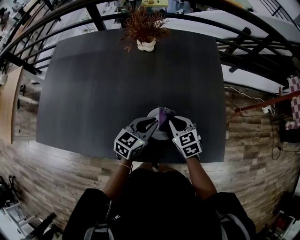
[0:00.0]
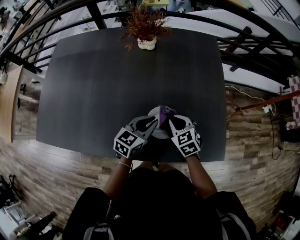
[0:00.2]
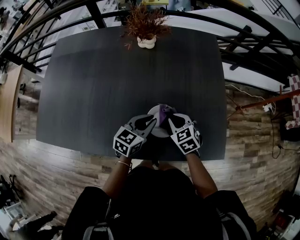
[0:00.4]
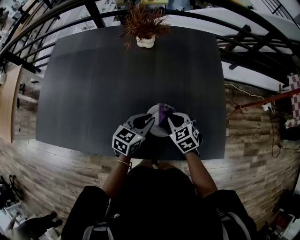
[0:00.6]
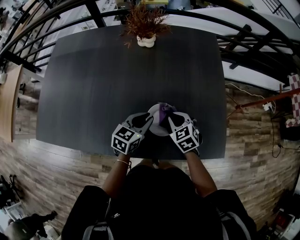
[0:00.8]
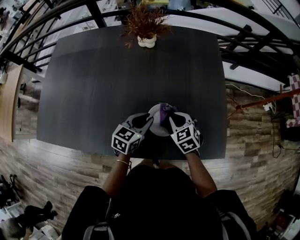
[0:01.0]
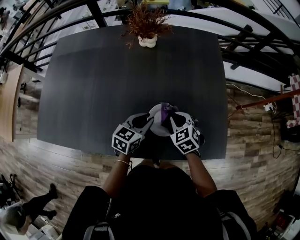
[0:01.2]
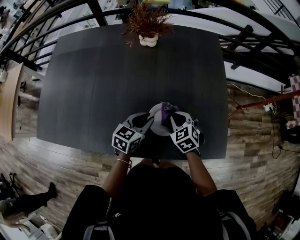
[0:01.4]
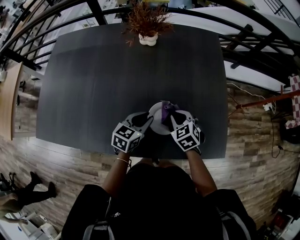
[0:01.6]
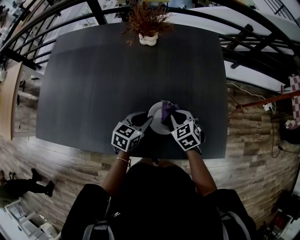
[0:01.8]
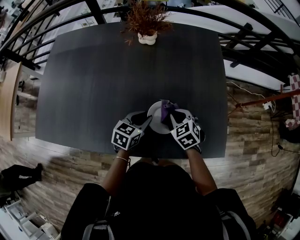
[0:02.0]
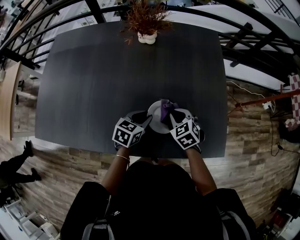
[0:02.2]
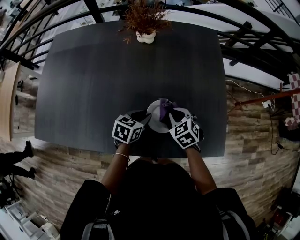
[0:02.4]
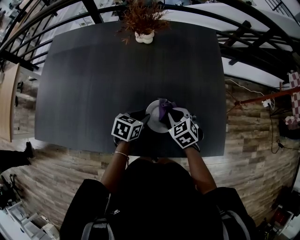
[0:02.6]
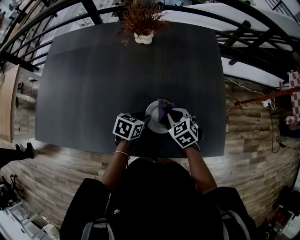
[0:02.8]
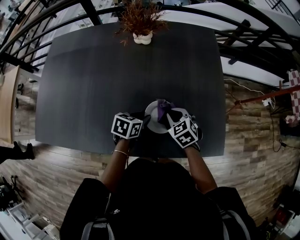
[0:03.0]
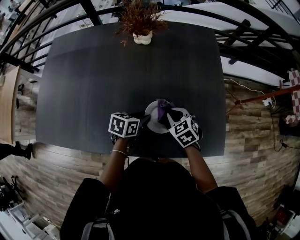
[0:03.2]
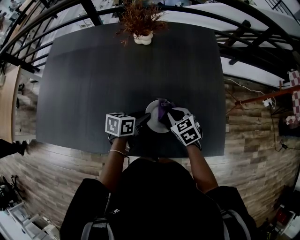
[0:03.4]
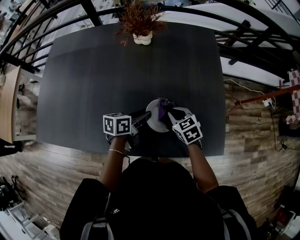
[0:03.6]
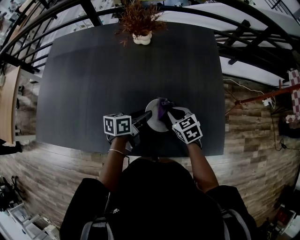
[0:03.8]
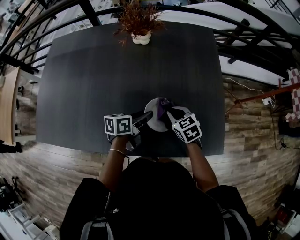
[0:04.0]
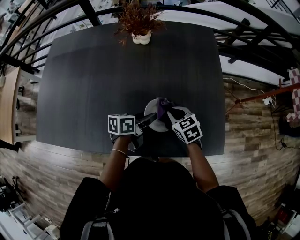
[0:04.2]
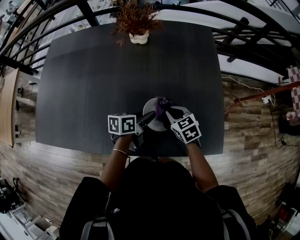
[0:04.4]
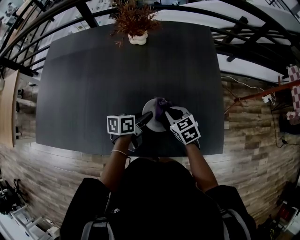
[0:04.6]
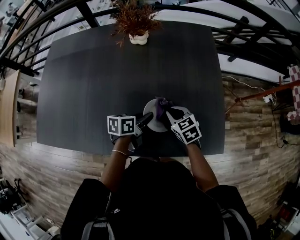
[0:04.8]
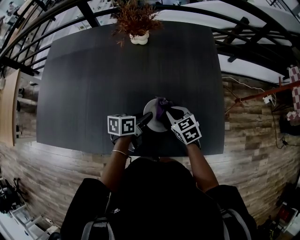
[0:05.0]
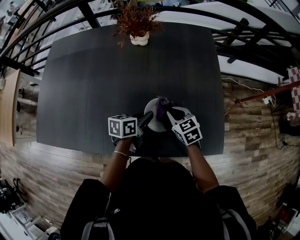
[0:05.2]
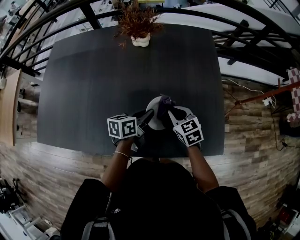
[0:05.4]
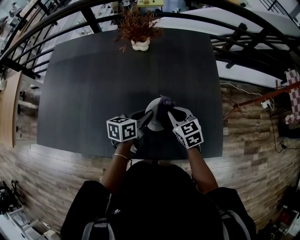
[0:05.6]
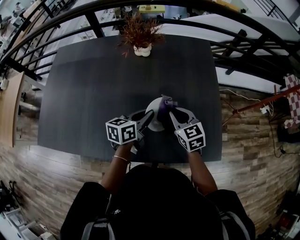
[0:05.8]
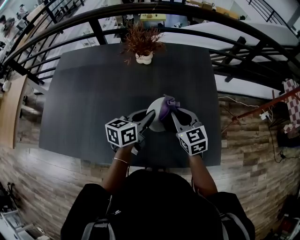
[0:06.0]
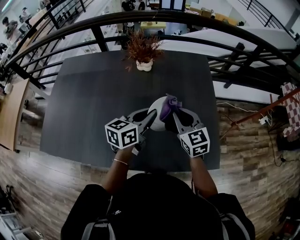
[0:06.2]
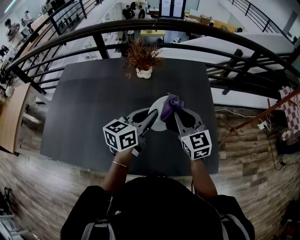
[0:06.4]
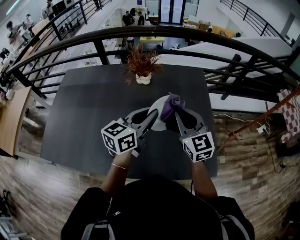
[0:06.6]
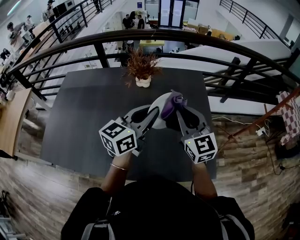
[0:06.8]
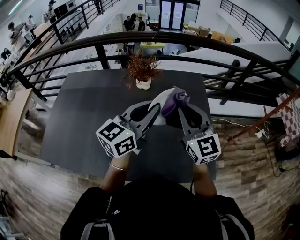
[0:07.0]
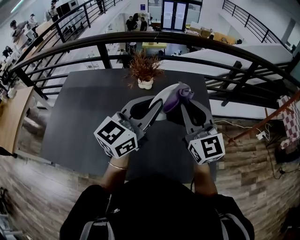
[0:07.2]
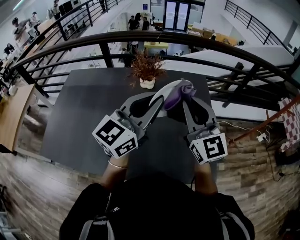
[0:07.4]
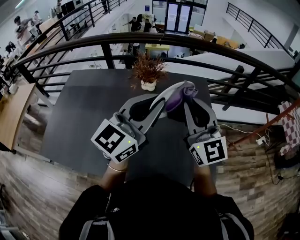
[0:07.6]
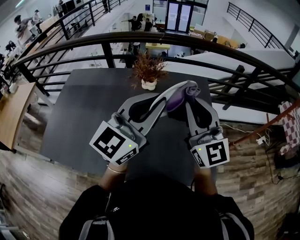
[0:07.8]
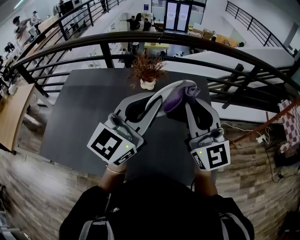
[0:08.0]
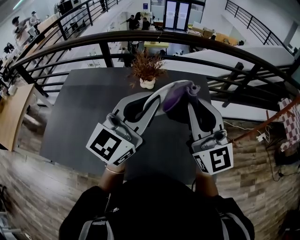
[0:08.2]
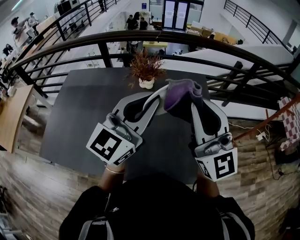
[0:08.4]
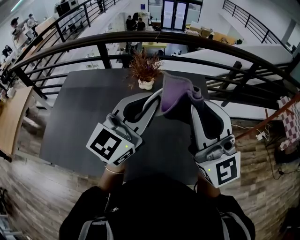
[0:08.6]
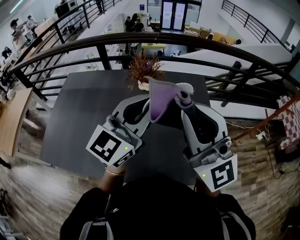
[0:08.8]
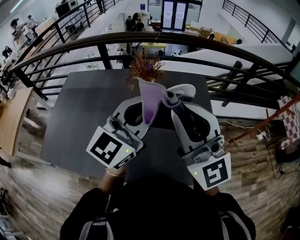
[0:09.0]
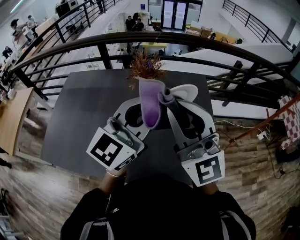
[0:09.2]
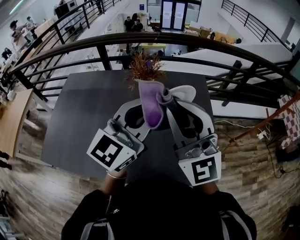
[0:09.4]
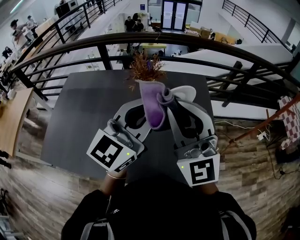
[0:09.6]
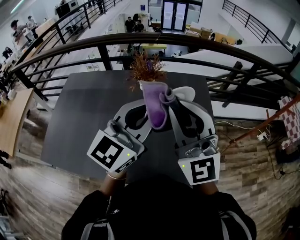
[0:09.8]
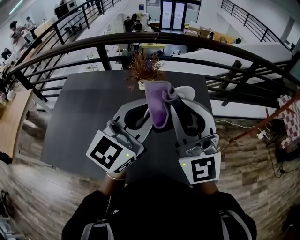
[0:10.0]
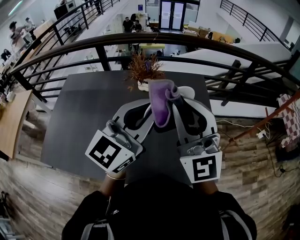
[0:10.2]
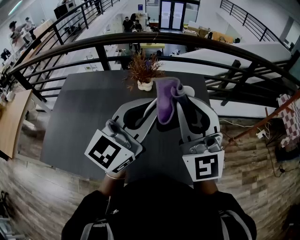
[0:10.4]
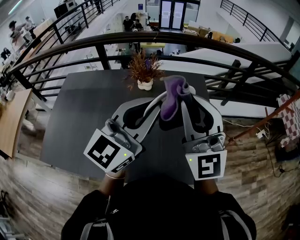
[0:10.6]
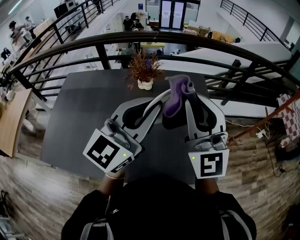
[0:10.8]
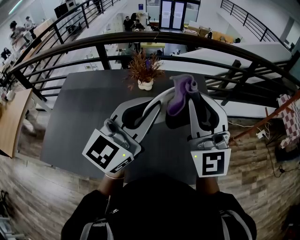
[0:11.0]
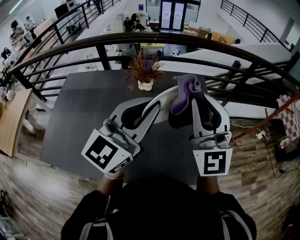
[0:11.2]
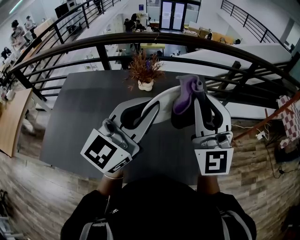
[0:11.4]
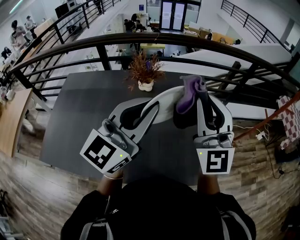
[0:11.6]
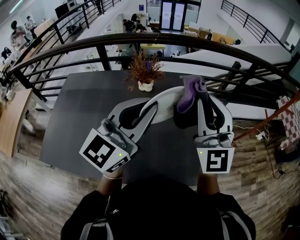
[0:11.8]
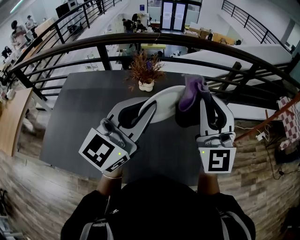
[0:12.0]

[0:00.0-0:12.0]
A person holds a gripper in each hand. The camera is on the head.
0:00.0 to 0:01.6: The grippers move only a little.
0:01.6 to 0:03.0: The left gripper rotates some 20 degrees.
0:03.0 to 0:04.4: The left gripper rotates roughly 30 degrees.
0:04.4 to 0:06.0: The grippers both shift upward by about 15 cm. The right gripper turns by some 20 degrees; the left gripper turns by approximately 20 degrees, and closes up.
0:06.0 to 0:07.6: Both grippers travel together upward, roughly 25 cm. The right gripper points its fingers some 40 degrees further upward. The left gripper turns by approximately 50 degrees.
0:07.6 to 0:09.0: The right gripper heads upward and backward, covering about 10 cm, and swivels about 20 degrees.
0:09.0 to 0:10.4: The grippers make only small movements.
0:10.4 to 0:12.0: The right gripper heads to the right, covering approximately 5 cm.

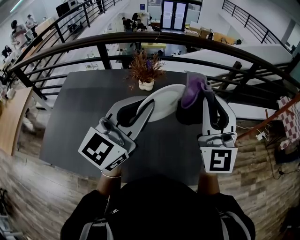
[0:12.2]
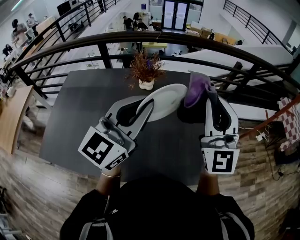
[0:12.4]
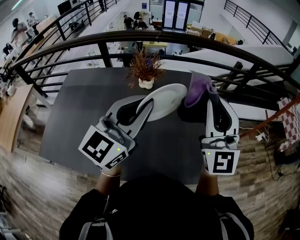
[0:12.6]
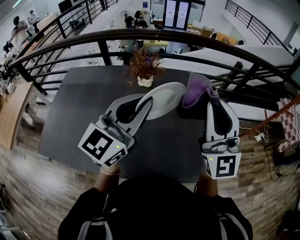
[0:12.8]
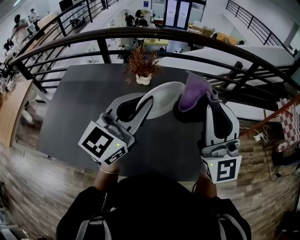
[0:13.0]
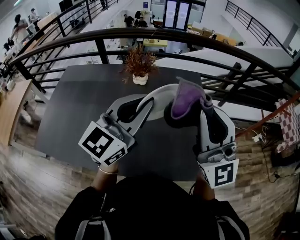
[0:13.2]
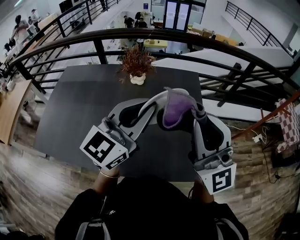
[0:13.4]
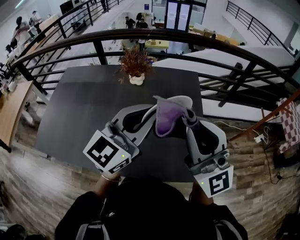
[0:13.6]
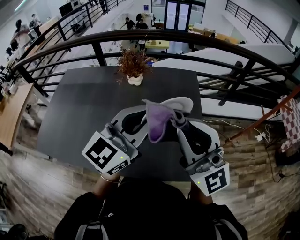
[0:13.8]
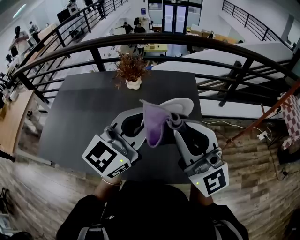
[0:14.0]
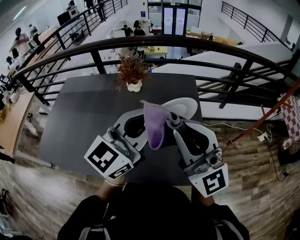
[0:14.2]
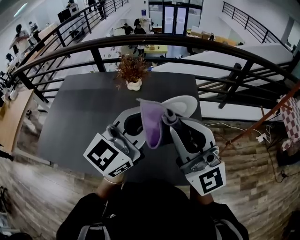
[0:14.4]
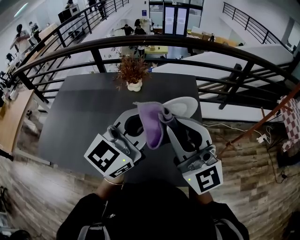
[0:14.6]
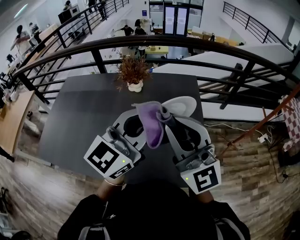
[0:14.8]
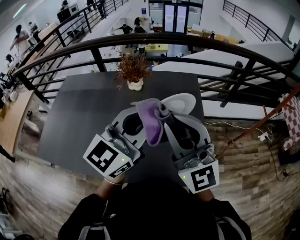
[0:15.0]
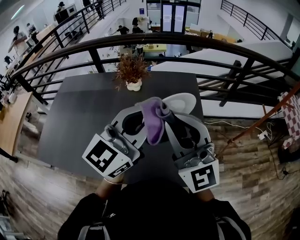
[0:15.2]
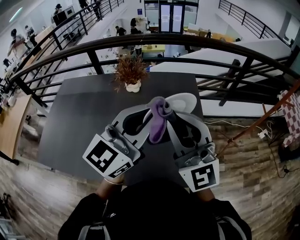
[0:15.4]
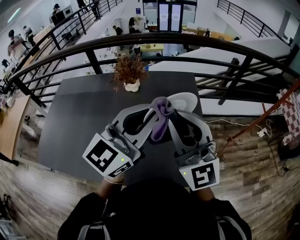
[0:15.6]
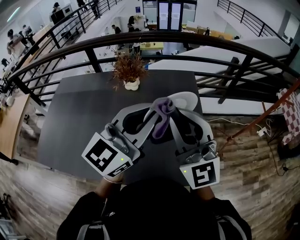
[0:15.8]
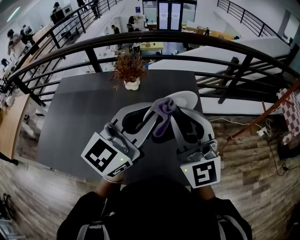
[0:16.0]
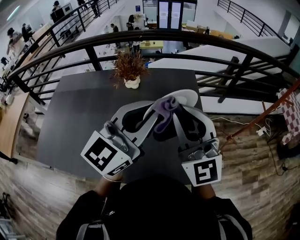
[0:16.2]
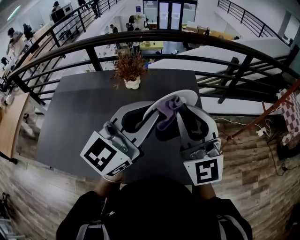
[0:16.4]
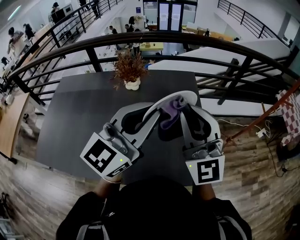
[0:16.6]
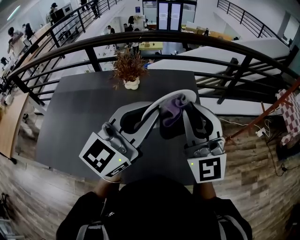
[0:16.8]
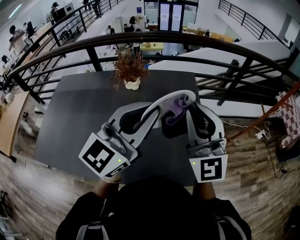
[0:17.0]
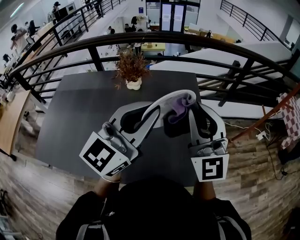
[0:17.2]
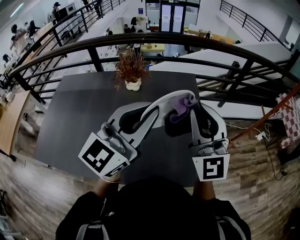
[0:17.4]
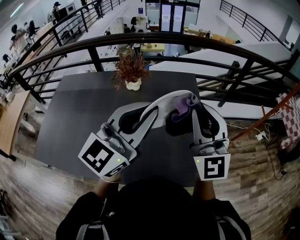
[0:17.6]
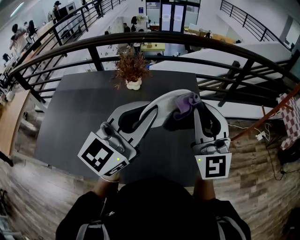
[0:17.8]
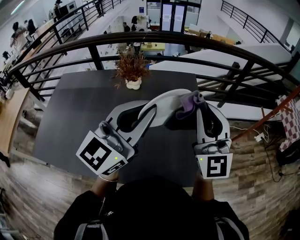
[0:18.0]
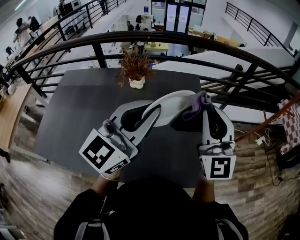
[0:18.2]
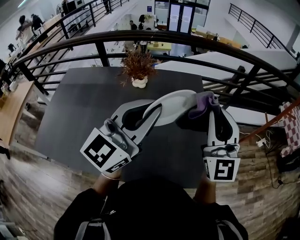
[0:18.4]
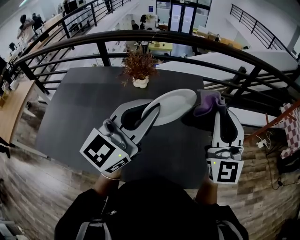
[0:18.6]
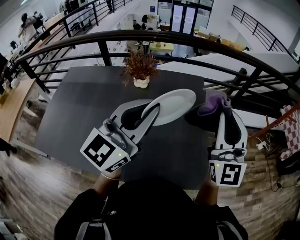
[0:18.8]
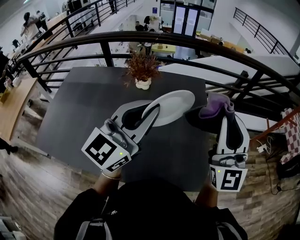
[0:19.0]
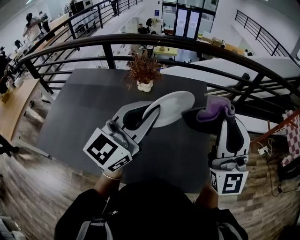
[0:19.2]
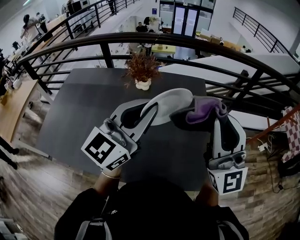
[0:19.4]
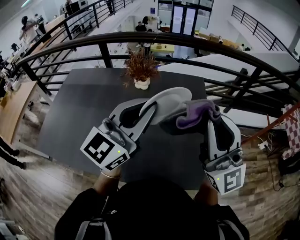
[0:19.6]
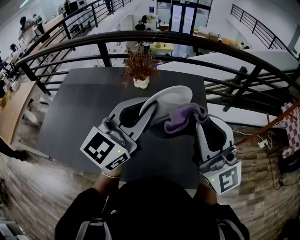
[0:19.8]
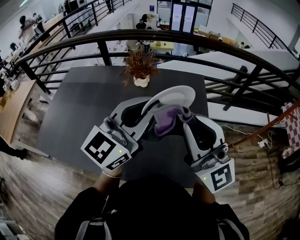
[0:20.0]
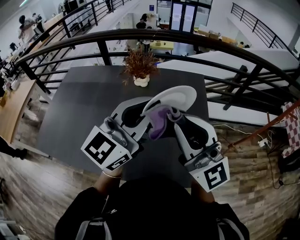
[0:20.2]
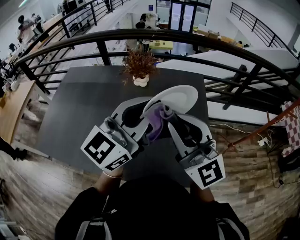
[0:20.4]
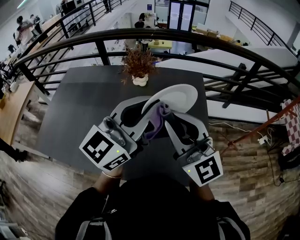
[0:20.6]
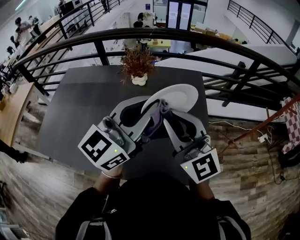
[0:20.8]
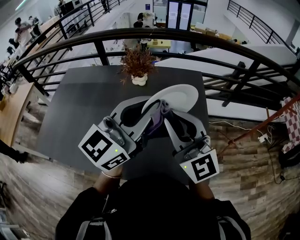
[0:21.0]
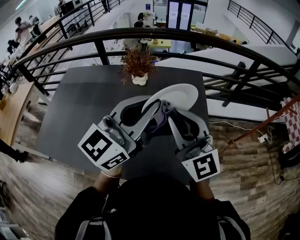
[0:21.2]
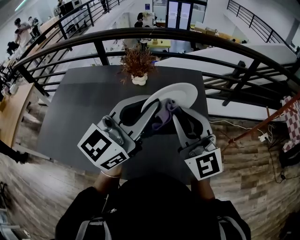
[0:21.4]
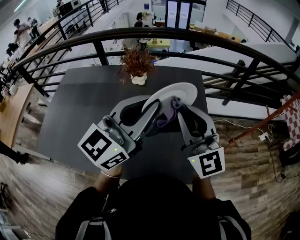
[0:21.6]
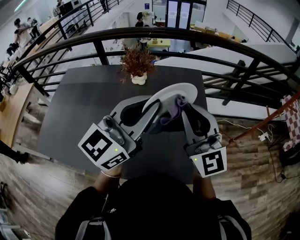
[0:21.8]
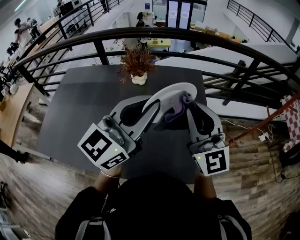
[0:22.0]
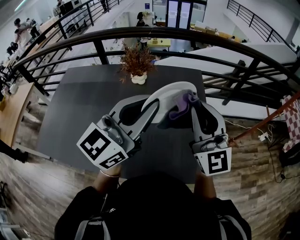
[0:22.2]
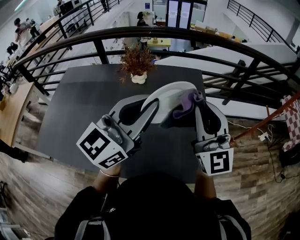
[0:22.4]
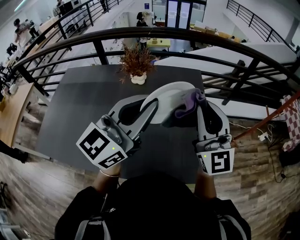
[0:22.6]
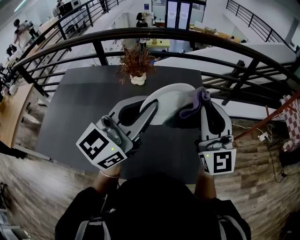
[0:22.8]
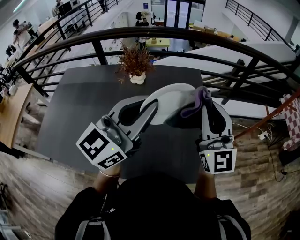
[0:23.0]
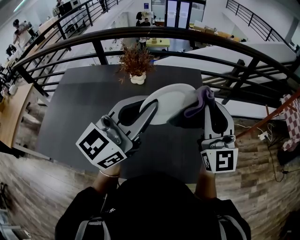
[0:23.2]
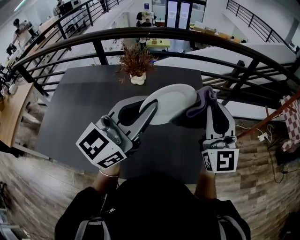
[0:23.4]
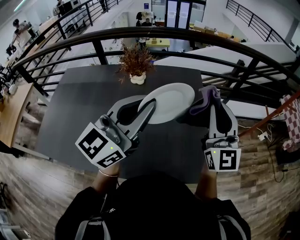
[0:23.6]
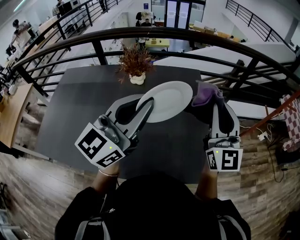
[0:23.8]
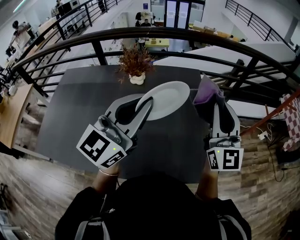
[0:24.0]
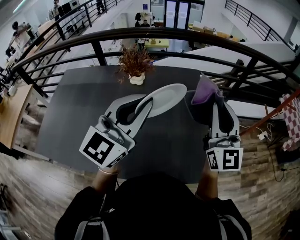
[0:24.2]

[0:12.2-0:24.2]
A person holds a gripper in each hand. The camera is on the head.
0:12.2 to 0:13.8: The left gripper moves to the right, some 10 cm. The right gripper travels backward by roughly 10 cm, and changes its angle by about 30 degrees.
0:13.8 to 0:15.2: The right gripper changes place by some 5 cm.
0:15.2 to 0:16.6: The right gripper changes place by some 5 cm.
0:16.6 to 0:18.2: The right gripper goes roughly 5 cm to the right.
0:18.2 to 0:19.8: The right gripper shifts some 10 cm backward and upward, and swivels roughly 30 degrees.
0:19.8 to 0:21.2: The right gripper is displaced downward and to the left by roughly 10 cm.
0:21.2 to 0:22.6: The right gripper goes about 10 cm to the right.
0:22.6 to 0:24.2: The right gripper goes approximately 5 cm to the right.
